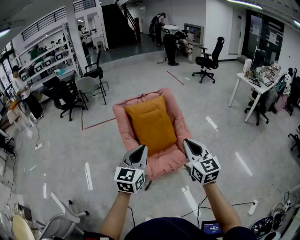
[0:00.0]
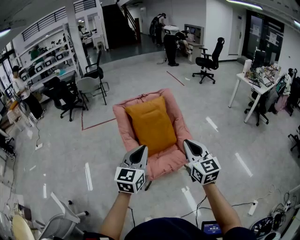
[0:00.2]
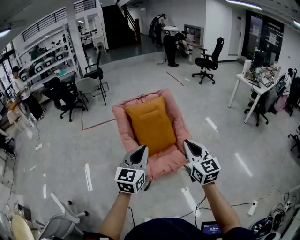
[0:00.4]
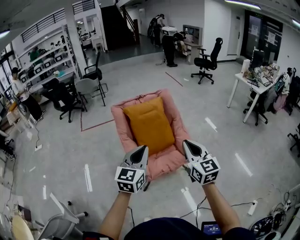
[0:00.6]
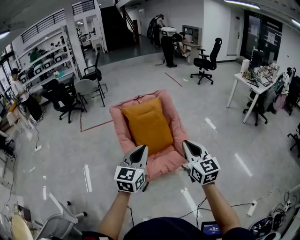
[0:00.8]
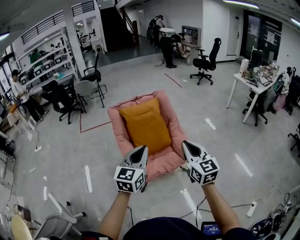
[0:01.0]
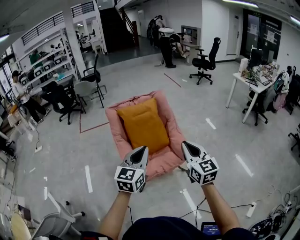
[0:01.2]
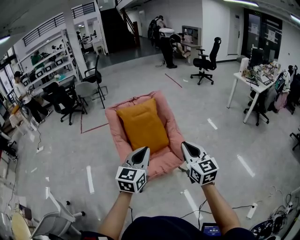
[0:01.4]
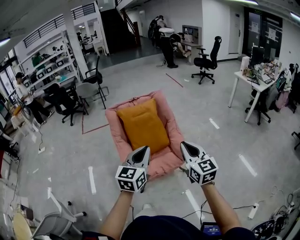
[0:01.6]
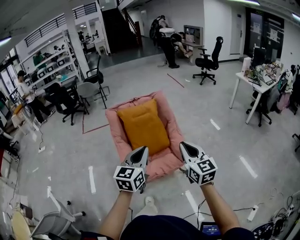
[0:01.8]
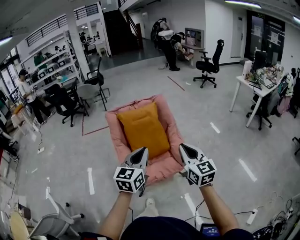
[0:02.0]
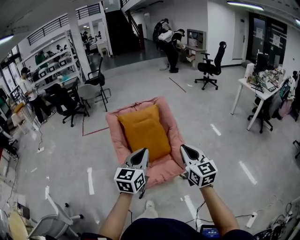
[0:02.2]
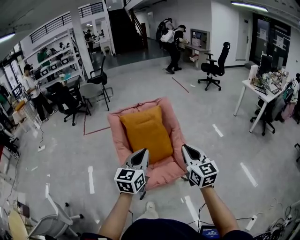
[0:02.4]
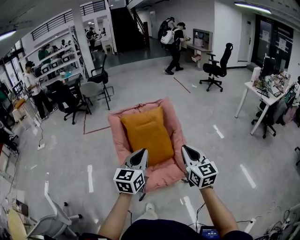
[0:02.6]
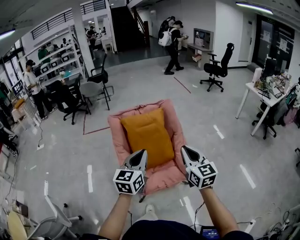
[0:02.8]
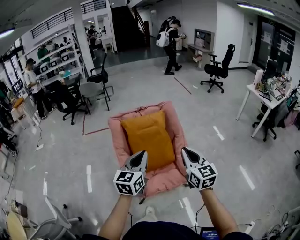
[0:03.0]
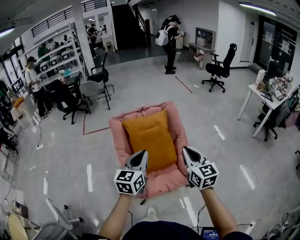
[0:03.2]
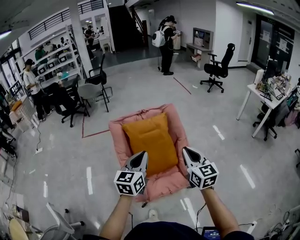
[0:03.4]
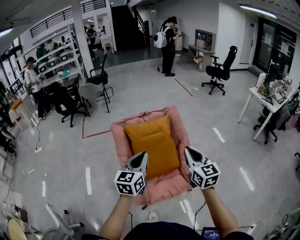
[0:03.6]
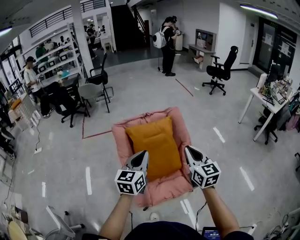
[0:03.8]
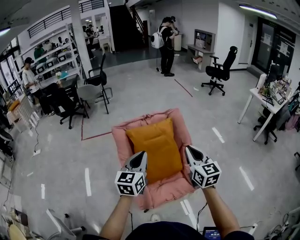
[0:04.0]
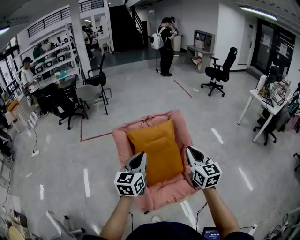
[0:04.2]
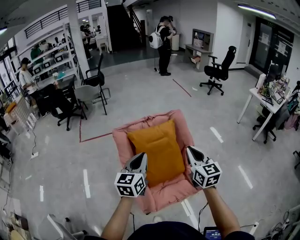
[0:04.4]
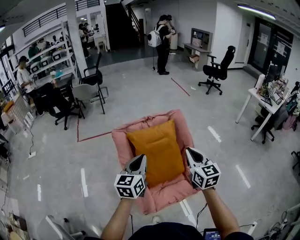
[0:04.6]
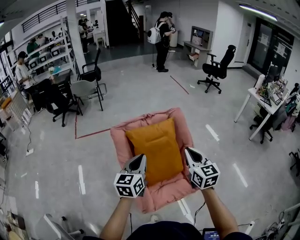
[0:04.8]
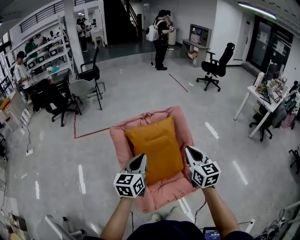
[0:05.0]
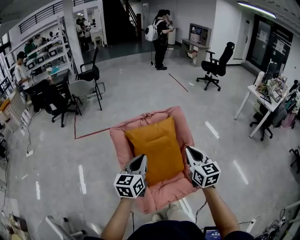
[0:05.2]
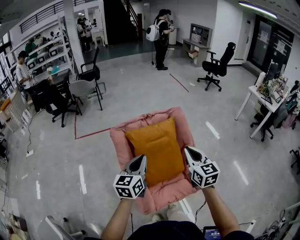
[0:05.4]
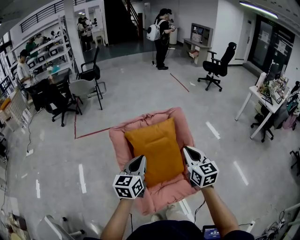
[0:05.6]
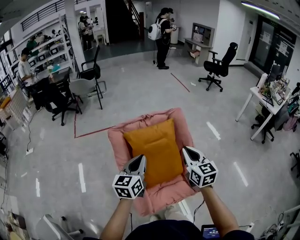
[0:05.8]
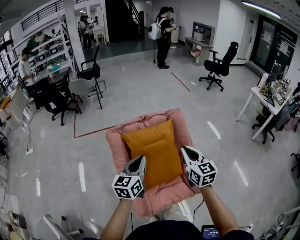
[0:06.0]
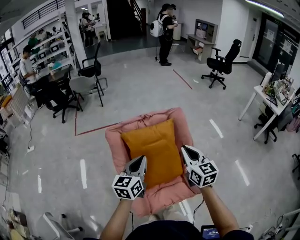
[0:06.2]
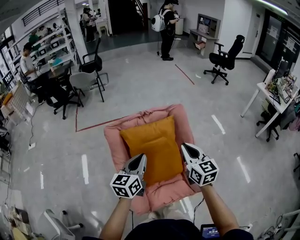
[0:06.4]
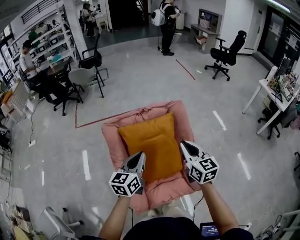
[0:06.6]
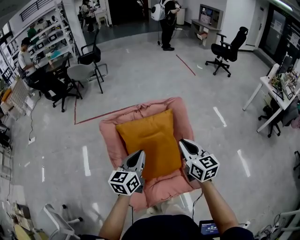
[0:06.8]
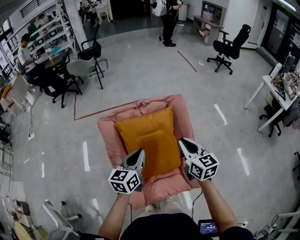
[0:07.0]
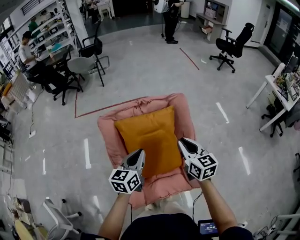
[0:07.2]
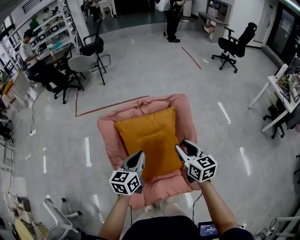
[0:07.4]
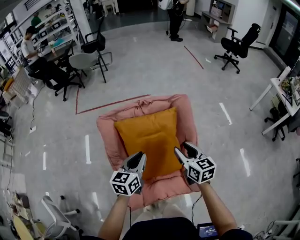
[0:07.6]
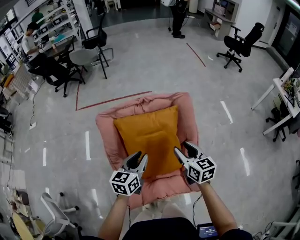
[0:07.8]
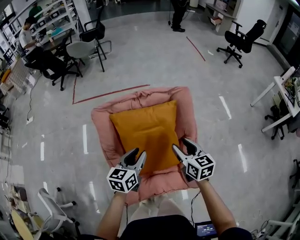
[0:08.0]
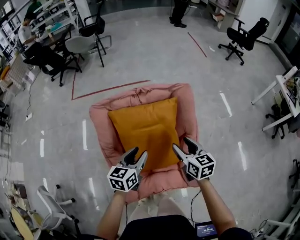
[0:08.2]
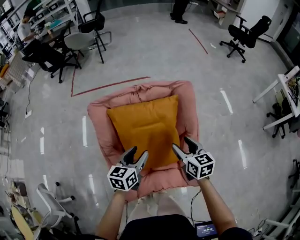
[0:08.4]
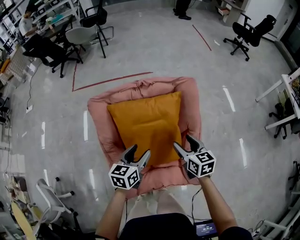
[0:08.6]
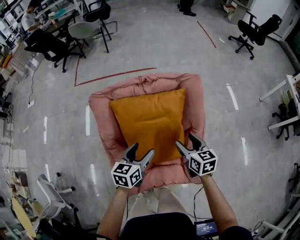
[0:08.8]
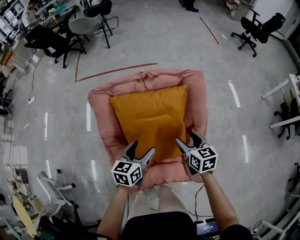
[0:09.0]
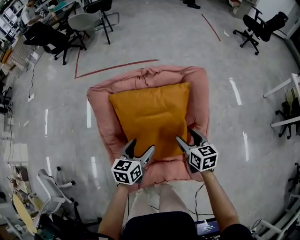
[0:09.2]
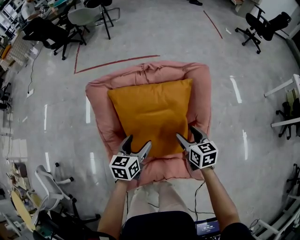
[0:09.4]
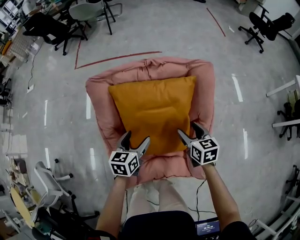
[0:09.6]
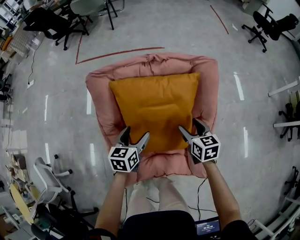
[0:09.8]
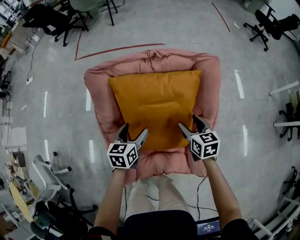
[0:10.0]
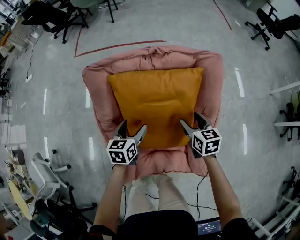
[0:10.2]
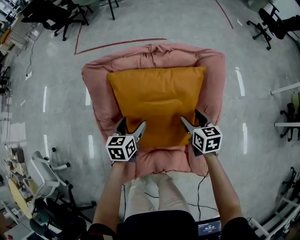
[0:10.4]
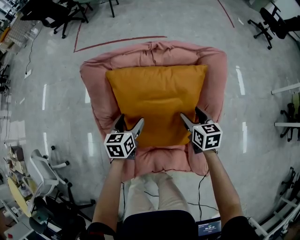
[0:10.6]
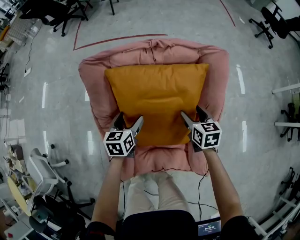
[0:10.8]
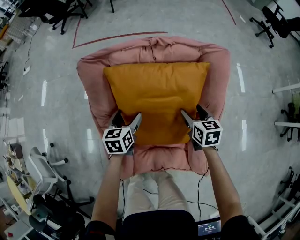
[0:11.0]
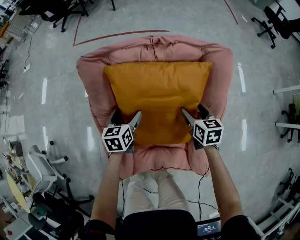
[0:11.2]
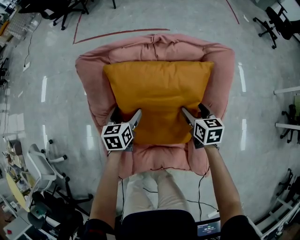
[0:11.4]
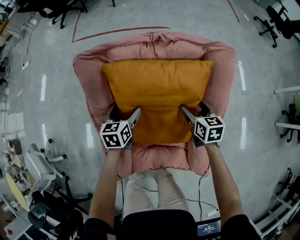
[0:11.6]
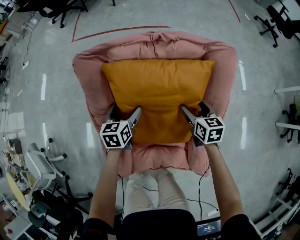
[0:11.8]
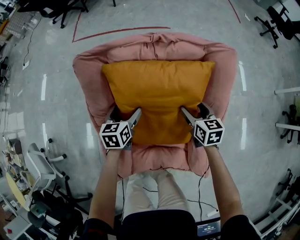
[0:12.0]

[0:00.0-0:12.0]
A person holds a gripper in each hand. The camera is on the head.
0.0 to 1.6 s: Both grippers travel together to the right, roughly 10 cm.
1.6 to 3.0 s: Both grippers move forward, some 15 cm.
3.0 to 4.4 s: The grippers both shift forward and to the left by about 15 cm.
4.4 to 6.0 s: The two grippers go approximately 5 cm forward.
6.0 to 7.6 s: Both grippers travel together downward and forward, roughly 15 cm. The right gripper opens up.
7.6 to 9.0 s: Both grippers move downward, about 10 cm. The right gripper opens up. The left gripper opens its fingers.
9.0 to 10.4 s: The right gripper moves downward and forward, about 10 cm; the left gripper is displaced downward, to the left and forward by some 15 cm.
10.4 to 12.0 s: The right gripper shifts by about 5 cm. Meanwhile the left gripper shifts by roughly 5 cm.

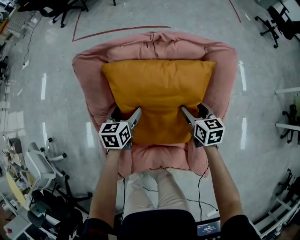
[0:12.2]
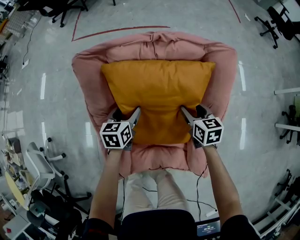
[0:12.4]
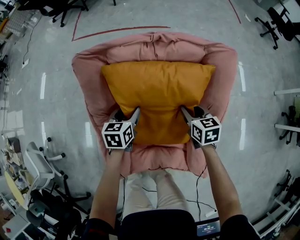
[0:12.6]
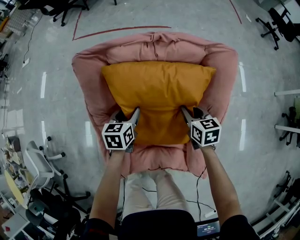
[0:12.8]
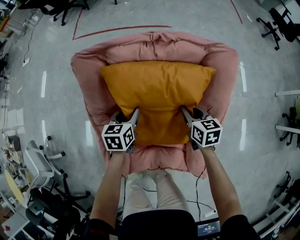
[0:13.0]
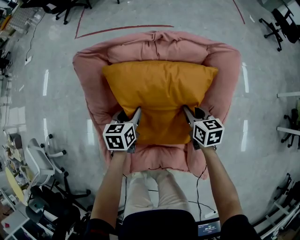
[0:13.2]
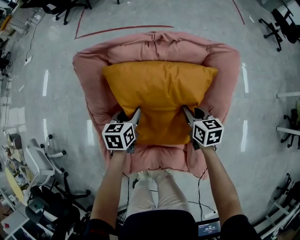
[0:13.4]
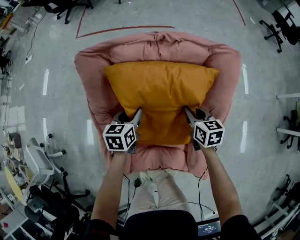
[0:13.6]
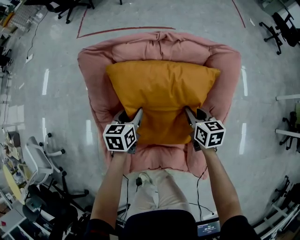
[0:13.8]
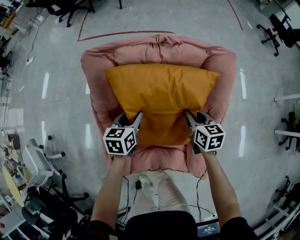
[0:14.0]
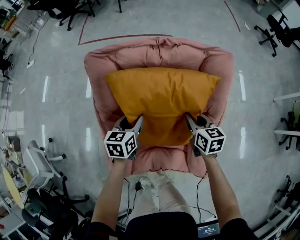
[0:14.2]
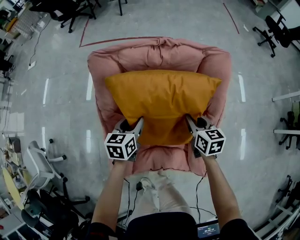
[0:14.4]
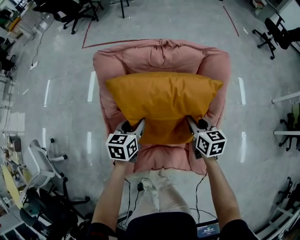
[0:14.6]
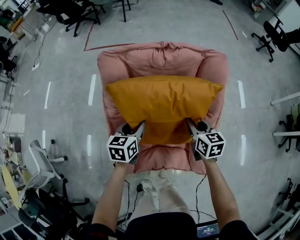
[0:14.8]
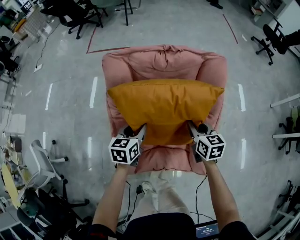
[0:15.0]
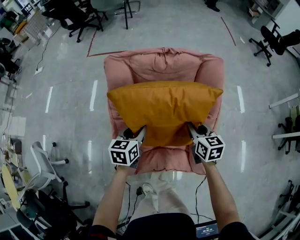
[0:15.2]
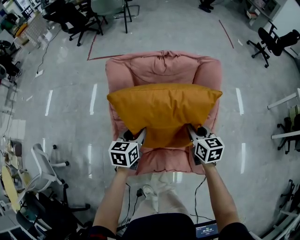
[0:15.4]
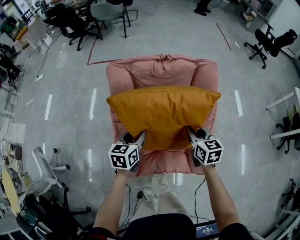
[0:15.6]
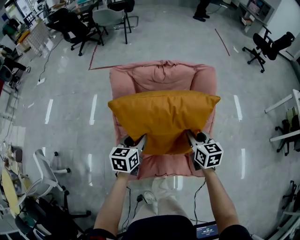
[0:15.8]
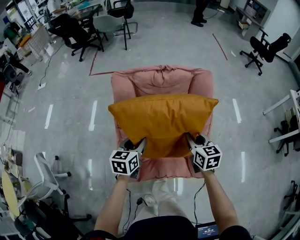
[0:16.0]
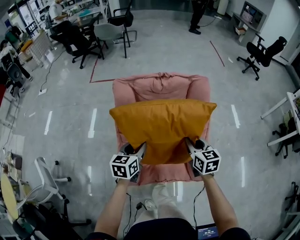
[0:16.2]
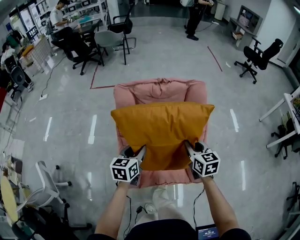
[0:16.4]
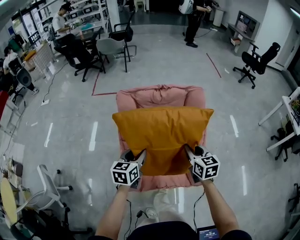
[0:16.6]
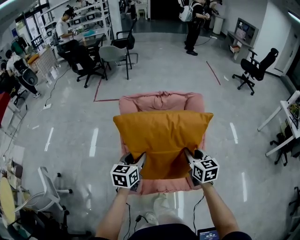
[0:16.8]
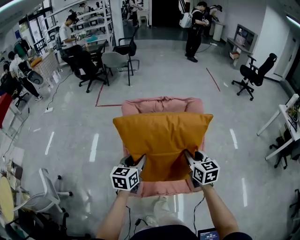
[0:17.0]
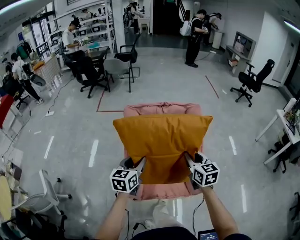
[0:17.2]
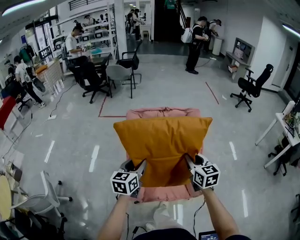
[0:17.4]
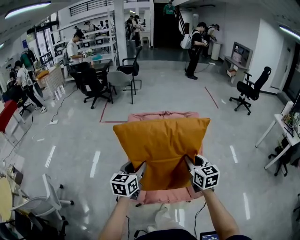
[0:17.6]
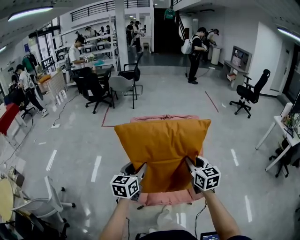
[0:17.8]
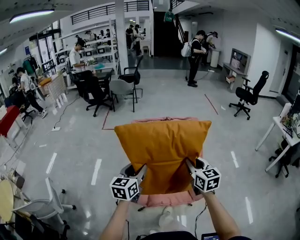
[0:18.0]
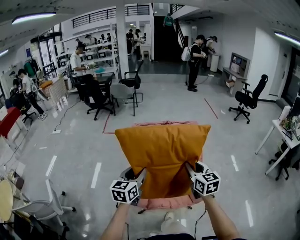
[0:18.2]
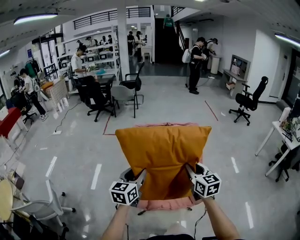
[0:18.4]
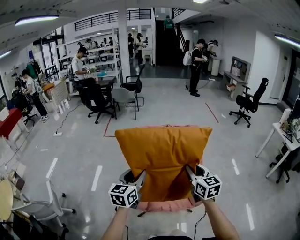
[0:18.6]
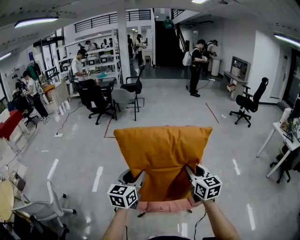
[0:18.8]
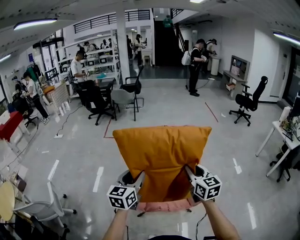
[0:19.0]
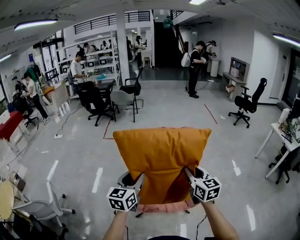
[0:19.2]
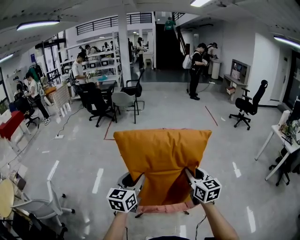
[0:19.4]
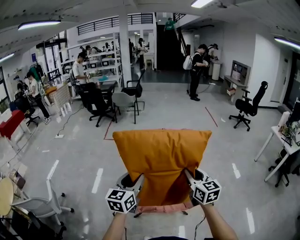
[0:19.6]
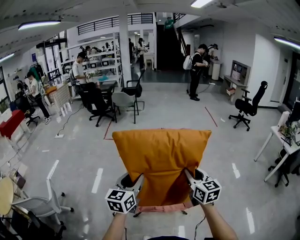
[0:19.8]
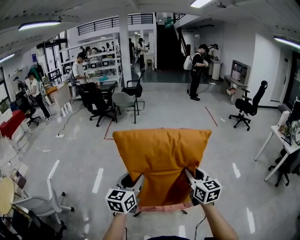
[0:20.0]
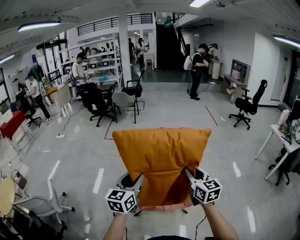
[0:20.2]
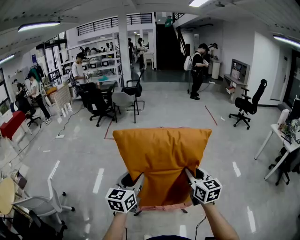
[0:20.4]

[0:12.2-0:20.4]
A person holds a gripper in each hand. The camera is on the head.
12.2 to 13.8 s: The left gripper closes its fingers, while the right gripper closes its fingers.
13.8 to 15.4 s: Both grippers move backward and upward, roughly 15 cm.
15.4 to 17.2 s: Both grippers travel together upward and backward, about 20 cm.
17.2 to 18.8 s: The two grippers go some 15 cm backward and upward.
18.8 to 20.4 s: The right gripper goes some 10 cm to the right and backward; the left gripper is displaced backward and to the right by some 10 cm.

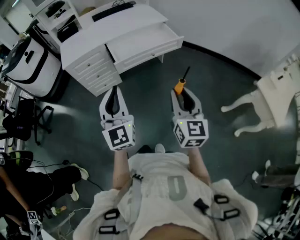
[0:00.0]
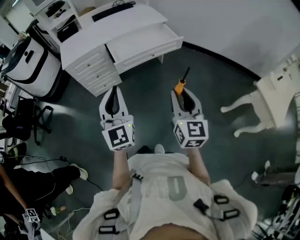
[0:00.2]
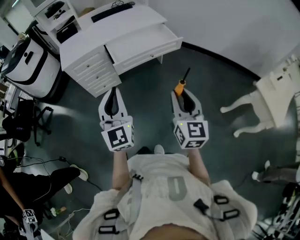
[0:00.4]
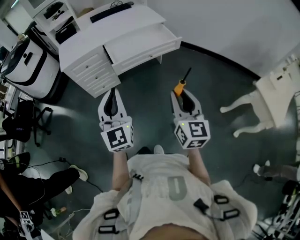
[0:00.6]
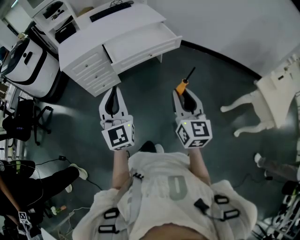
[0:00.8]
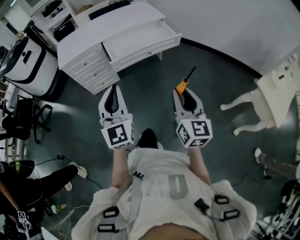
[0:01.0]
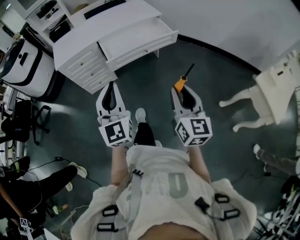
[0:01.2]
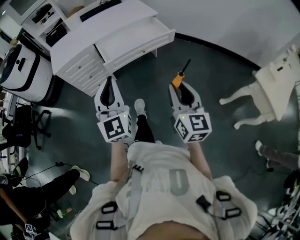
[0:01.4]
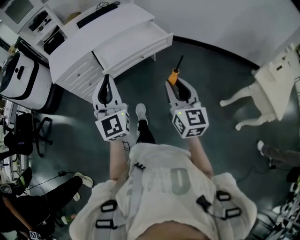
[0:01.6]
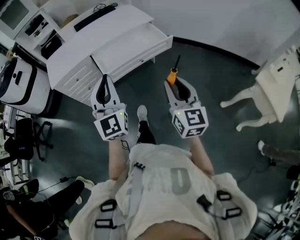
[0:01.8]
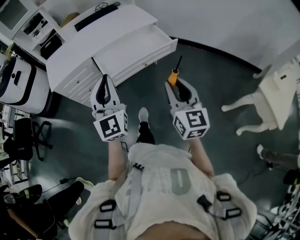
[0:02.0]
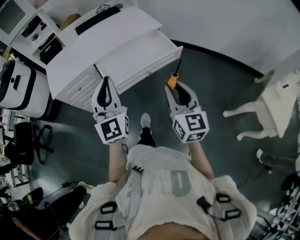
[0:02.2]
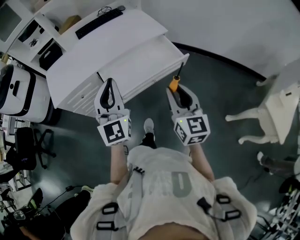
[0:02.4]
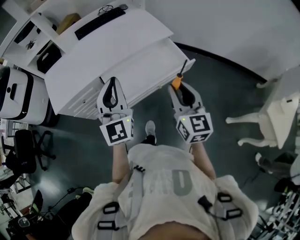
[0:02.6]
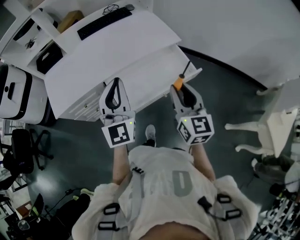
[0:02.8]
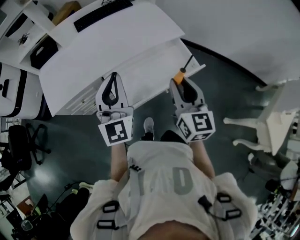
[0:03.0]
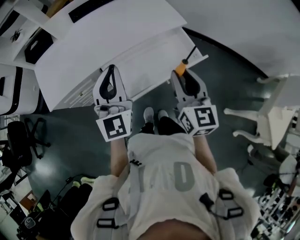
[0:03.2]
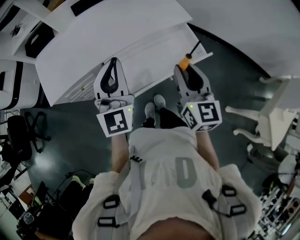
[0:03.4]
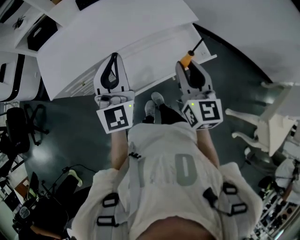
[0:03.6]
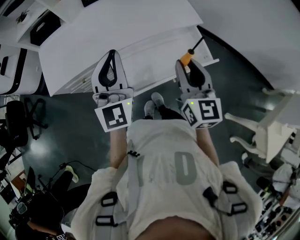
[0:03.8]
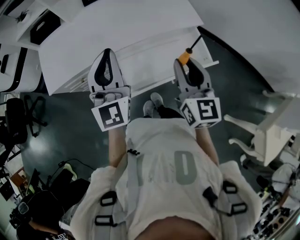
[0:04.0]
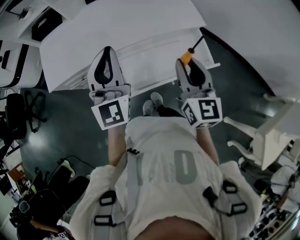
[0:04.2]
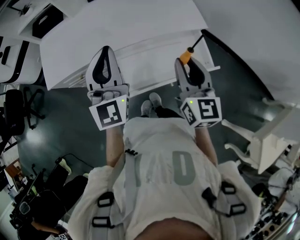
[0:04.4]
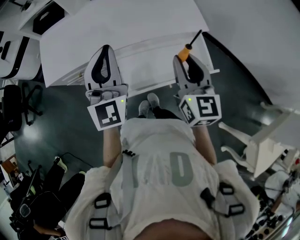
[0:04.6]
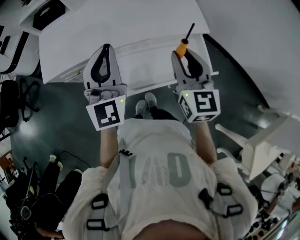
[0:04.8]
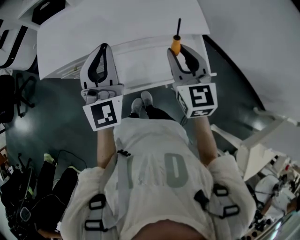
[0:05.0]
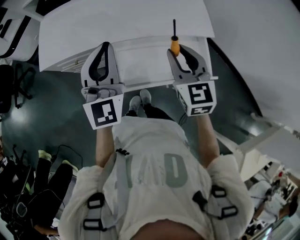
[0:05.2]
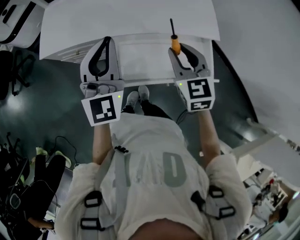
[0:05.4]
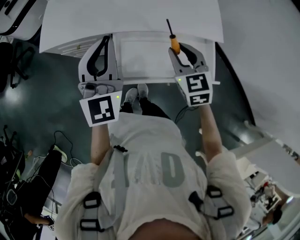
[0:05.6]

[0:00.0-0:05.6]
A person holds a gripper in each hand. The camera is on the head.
0.0 to 1.4 s: The left gripper heads forward, covering about 5 cm. Meanwhile the right gripper shifts by about 5 cm.
1.4 to 2.8 s: The pair of grippers is taken forward, roughly 40 cm.
2.8 to 4.2 s: The two grippers go about 10 cm forward.
4.2 to 5.6 s: The right gripper travels downward and forward by approximately 15 cm, and changes its angle by roughly 40 degrees. The left gripper changes place by some 5 cm.
